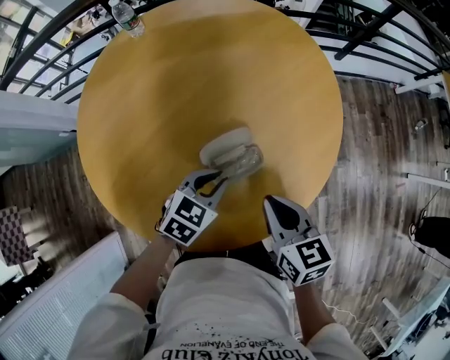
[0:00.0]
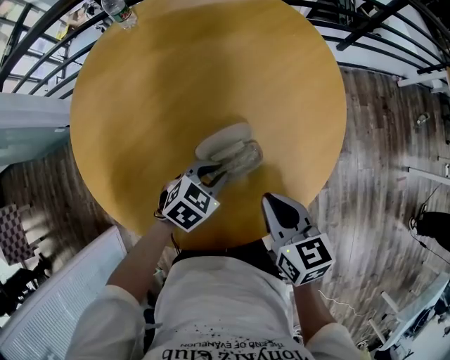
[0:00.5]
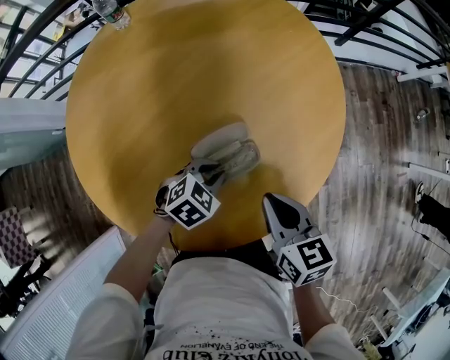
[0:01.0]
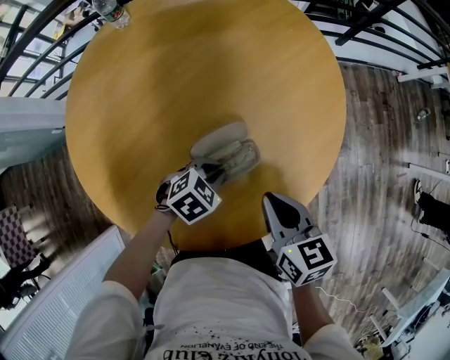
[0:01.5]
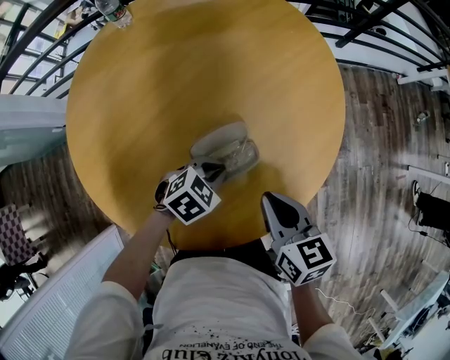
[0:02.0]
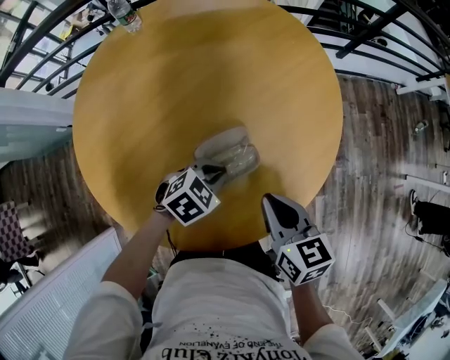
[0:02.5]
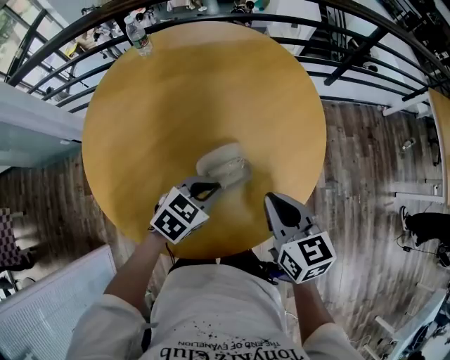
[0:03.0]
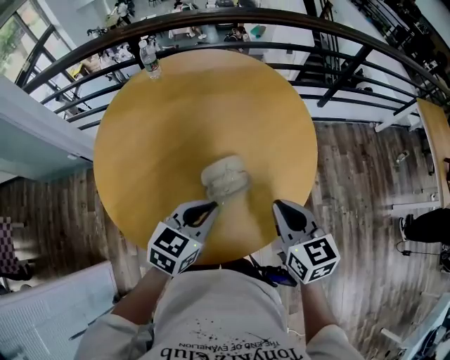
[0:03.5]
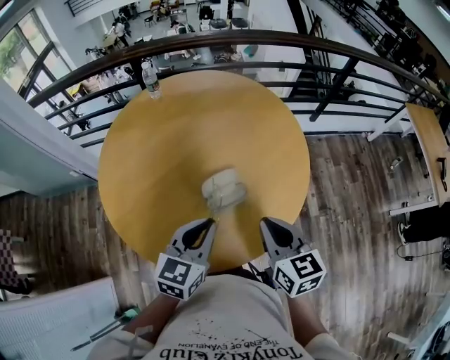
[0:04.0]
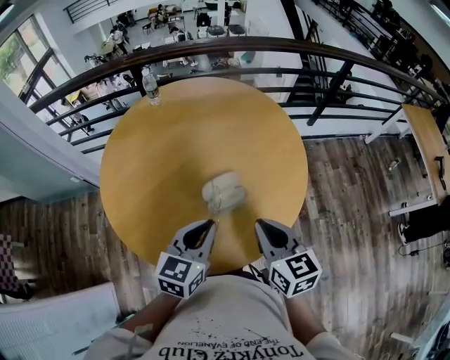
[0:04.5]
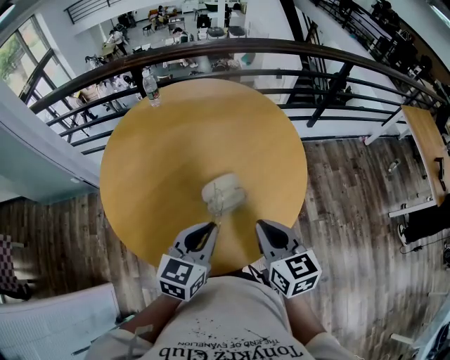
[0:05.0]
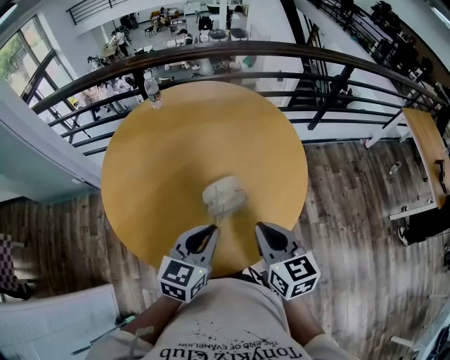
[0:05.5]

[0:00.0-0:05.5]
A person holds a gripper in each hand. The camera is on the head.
0:00.0 to 0:02.0: The left gripper goes about 5 cm downward, and turns by roughly 20 degrees.
0:02.0 to 0:03.5: The left gripper is displaced upward by some 20 cm, and swivels about 40 degrees. The right gripper moves upward, some 10 cm.
0:03.5 to 0:05.5: The left gripper heads upward, covering roughly 5 cm. Meanwhile the right gripper moves about 5 cm.

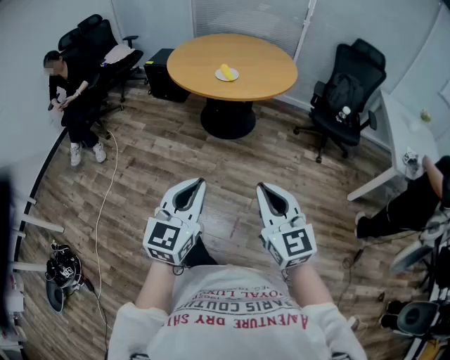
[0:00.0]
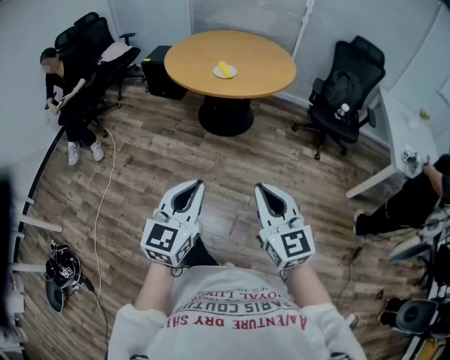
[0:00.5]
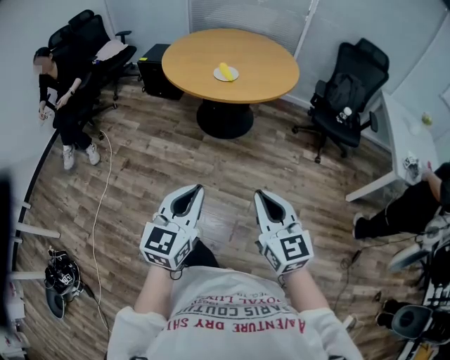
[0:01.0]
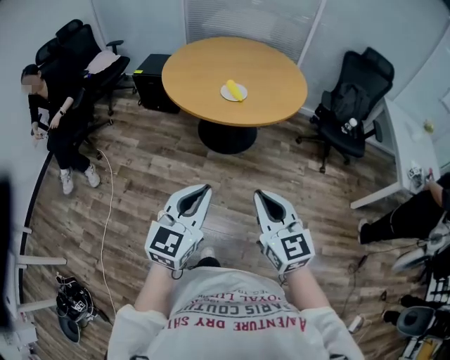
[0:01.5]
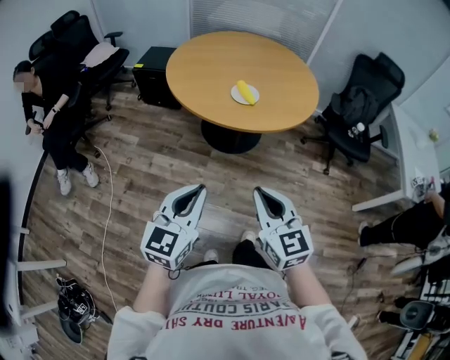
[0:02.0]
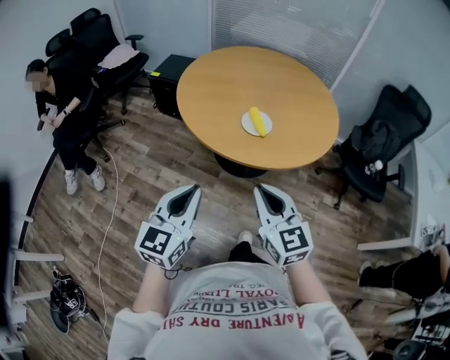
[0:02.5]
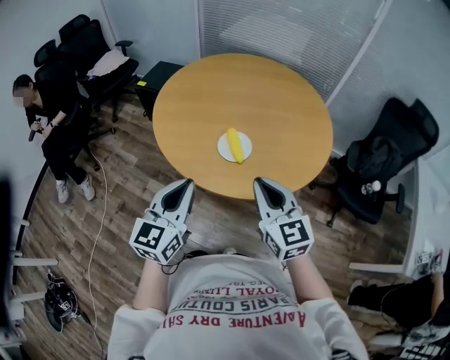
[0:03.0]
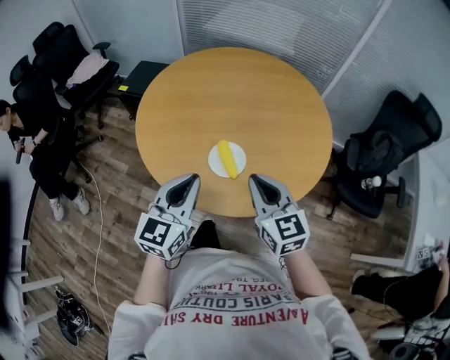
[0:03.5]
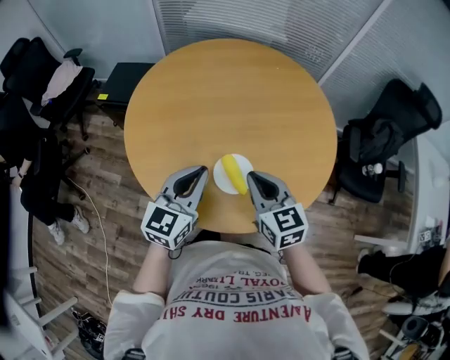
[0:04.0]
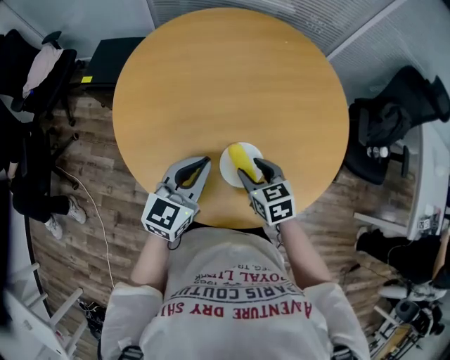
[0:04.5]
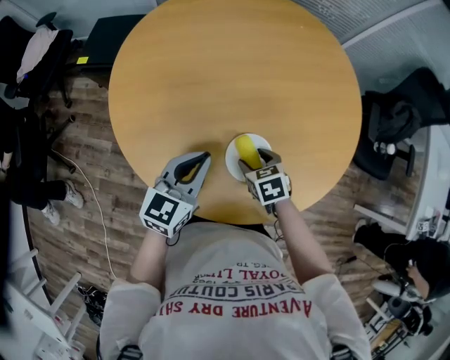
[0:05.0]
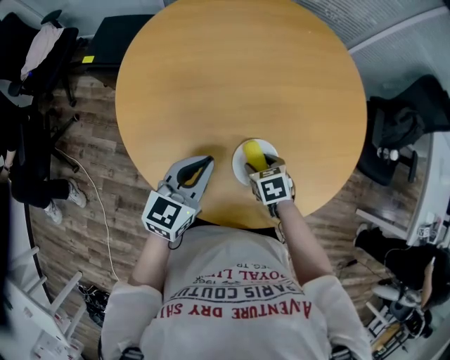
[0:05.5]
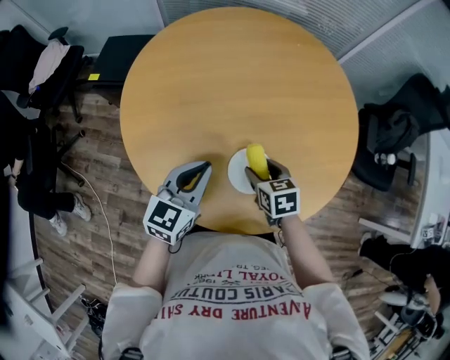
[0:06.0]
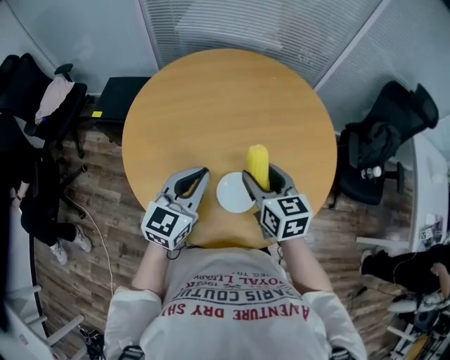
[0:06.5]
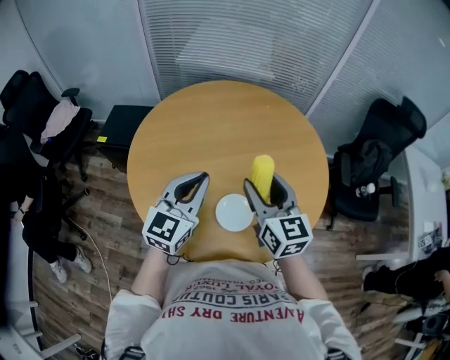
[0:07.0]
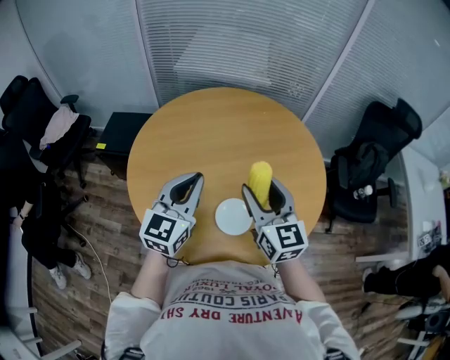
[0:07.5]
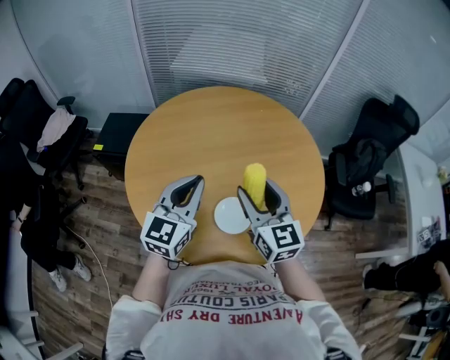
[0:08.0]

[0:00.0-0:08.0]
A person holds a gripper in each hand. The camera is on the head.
0:00.0 to 0:02.0: The two grippers go some 30 cm forward and to the left.
0:02.0 to 0:04.0: Both grippers are carried forward, approximately 50 cm.
0:04.0 to 0:06.0: The right gripper moves downward, roughly 15 cm, rotates about 30 degrees, and opens up, while the left gripper heads downward, covering some 10 cm.
0:06.0 to 0:08.0: The right gripper is displaced upward by some 25 cm, and points its fingers roughly 40 degrees further upward; the left gripper travels upward by some 15 cm.

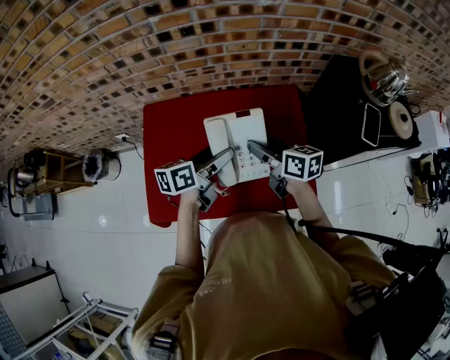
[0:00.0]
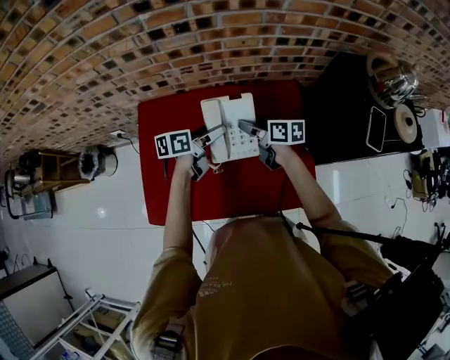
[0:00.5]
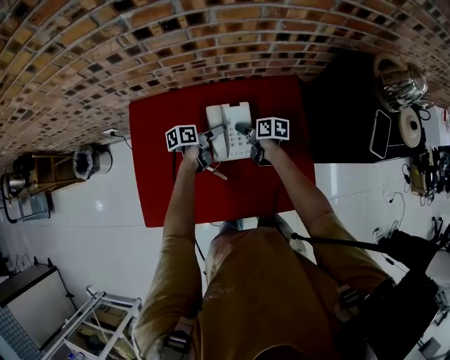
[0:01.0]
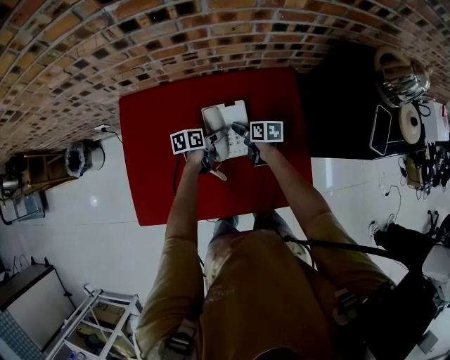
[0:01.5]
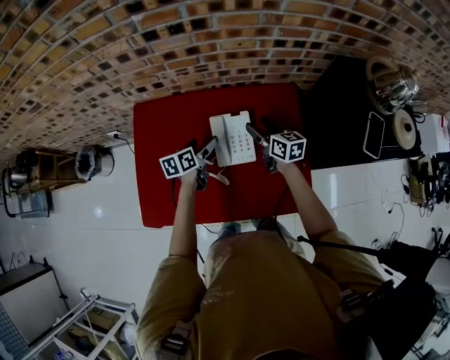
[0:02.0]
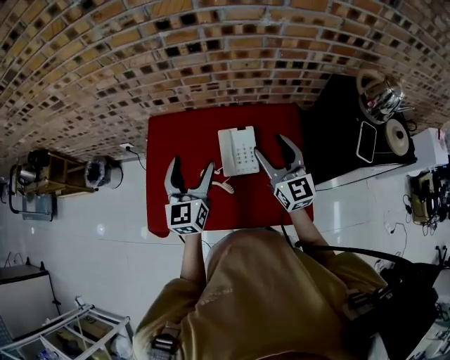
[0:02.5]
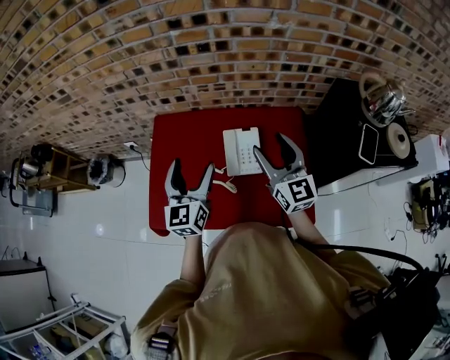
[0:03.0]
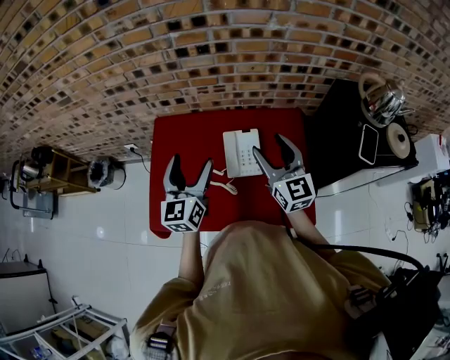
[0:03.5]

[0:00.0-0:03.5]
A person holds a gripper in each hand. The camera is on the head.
0:00.0 to 0:02.0: Both grippers travel together downward and forward, approximately 20 cm. The left gripper turns by some 20 degrees.
0:02.0 to 0:03.5: Both grippers move upward and backward, about 30 cm. The right gripper changes its angle by roughly 50 degrees. Meanwhile the left gripper angles its fingers upward, by about 40 degrees.

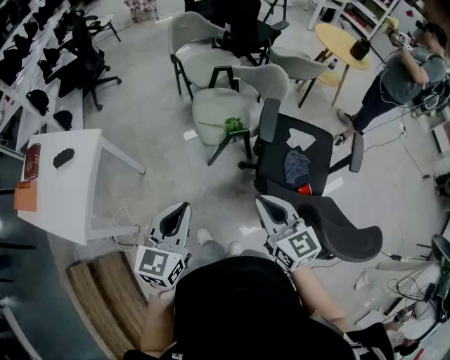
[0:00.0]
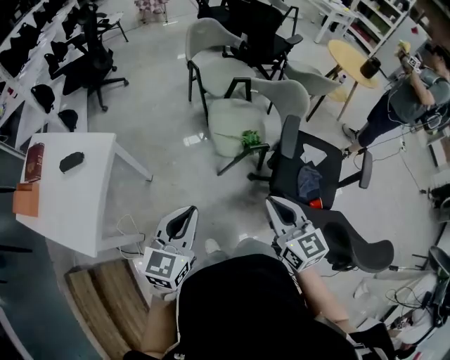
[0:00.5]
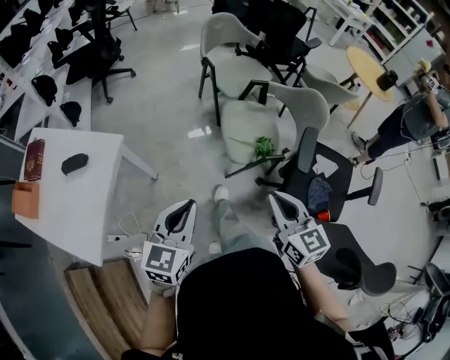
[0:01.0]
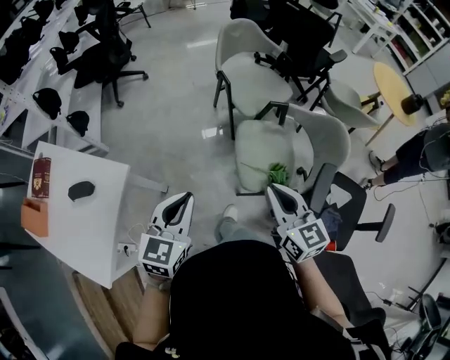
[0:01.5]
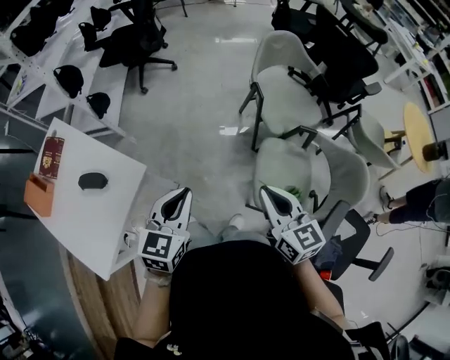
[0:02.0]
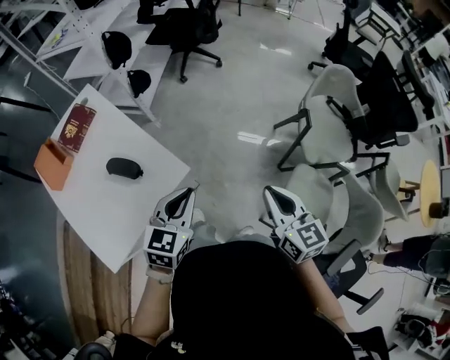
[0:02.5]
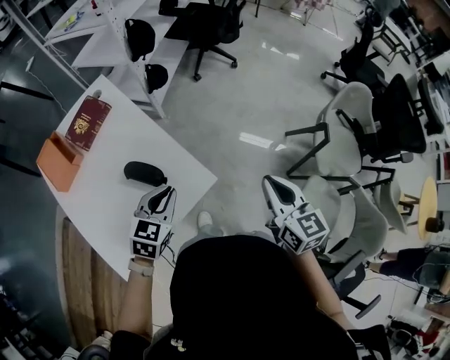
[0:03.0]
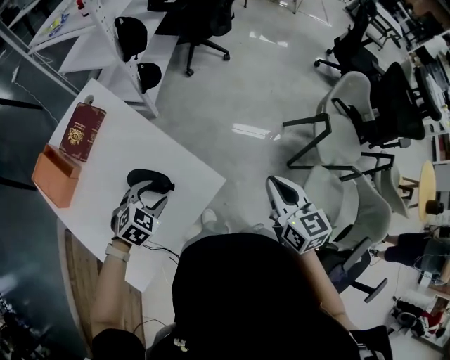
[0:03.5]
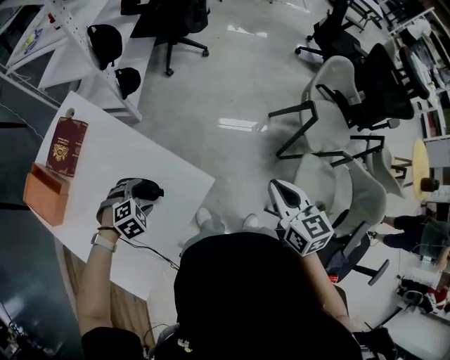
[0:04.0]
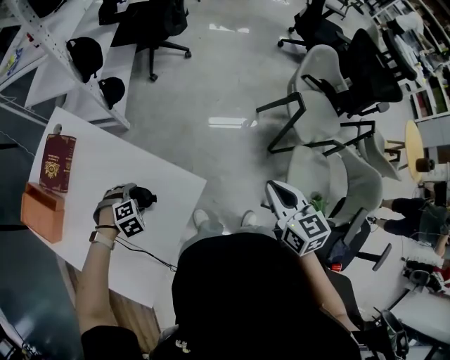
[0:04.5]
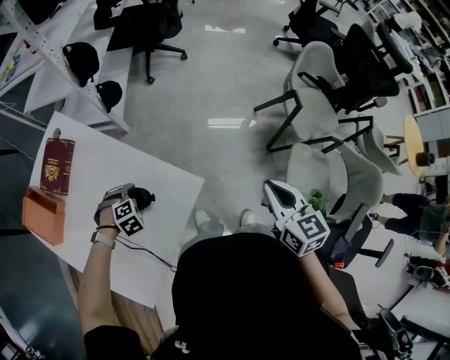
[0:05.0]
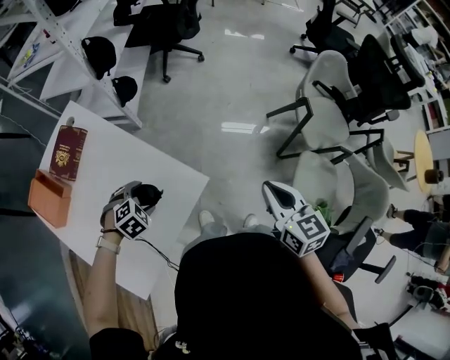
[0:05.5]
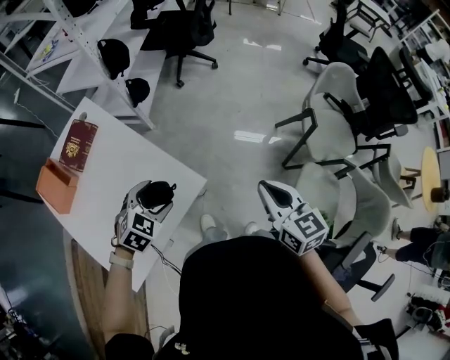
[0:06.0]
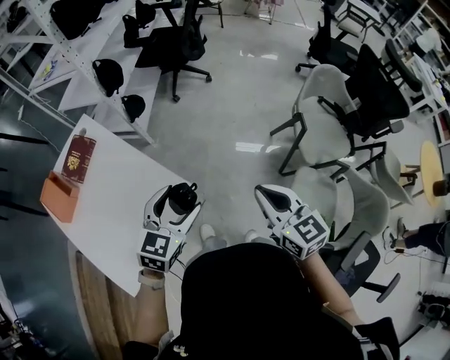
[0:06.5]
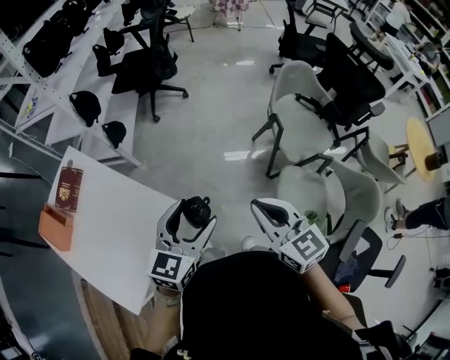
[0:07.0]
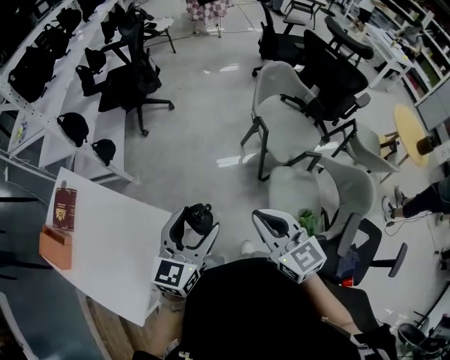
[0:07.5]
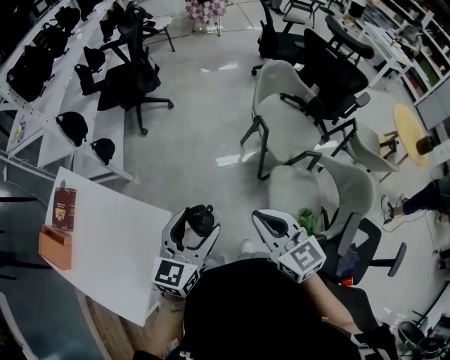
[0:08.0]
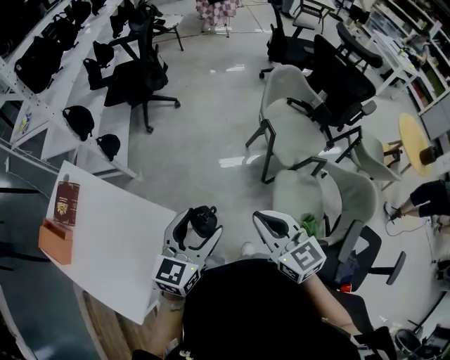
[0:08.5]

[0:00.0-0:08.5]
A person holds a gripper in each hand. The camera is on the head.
0:00.0 to 0:02.0: The two grippers travel together, forward and to the left, about 50 cm. The left gripper rotates approximately 20 degrees.
0:02.0 to 0:04.0: The left gripper travels to the left and downward by some 50 cm, points its fingers approximately 50 degrees further downward, and opens up. Meanwhile the right gripper moves to the left and forward, approximately 35 cm.
0:04.0 to 0:06.5: The right gripper is displaced upward by roughly 10 cm. The left gripper shifts about 25 cm upward, and tilts its fingers roughly 50 degrees upward.
0:06.5 to 0:08.5: The left gripper shifts about 15 cm to the right, while the right gripper travels to the right by about 10 cm.
